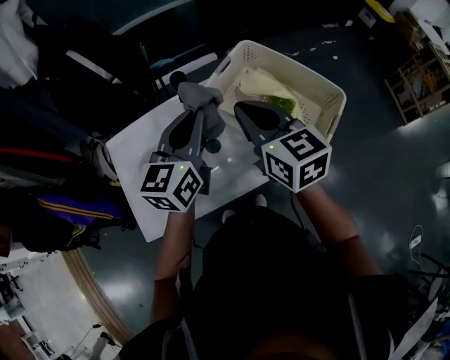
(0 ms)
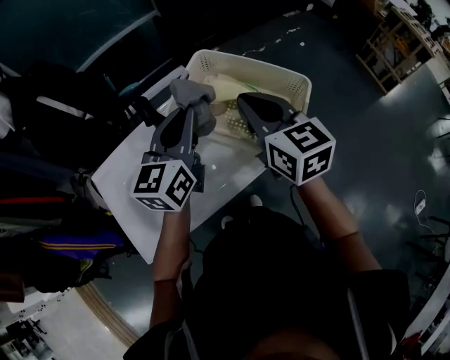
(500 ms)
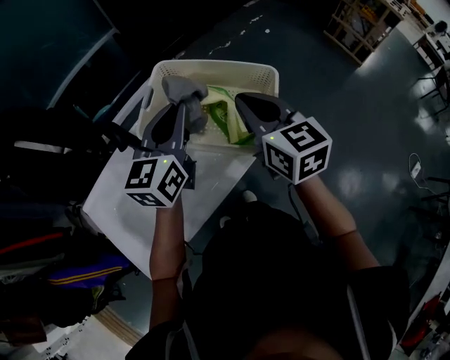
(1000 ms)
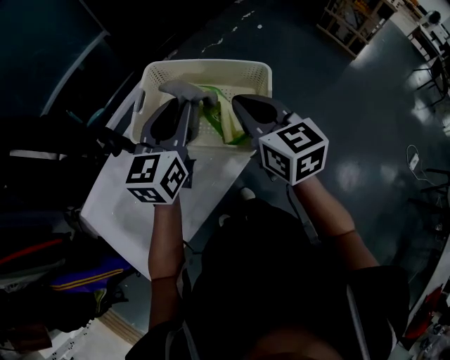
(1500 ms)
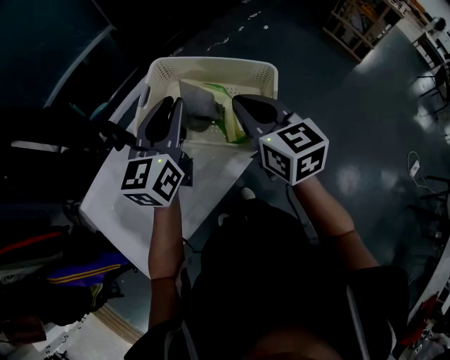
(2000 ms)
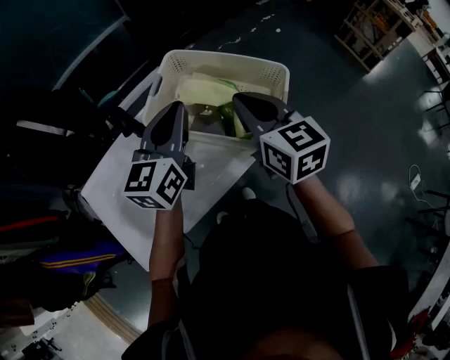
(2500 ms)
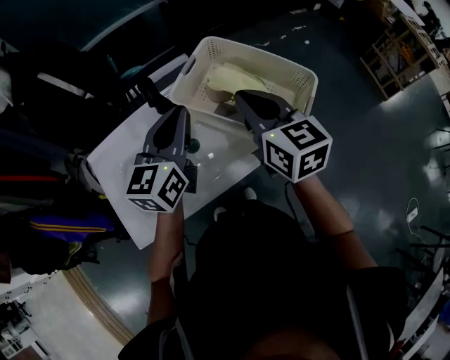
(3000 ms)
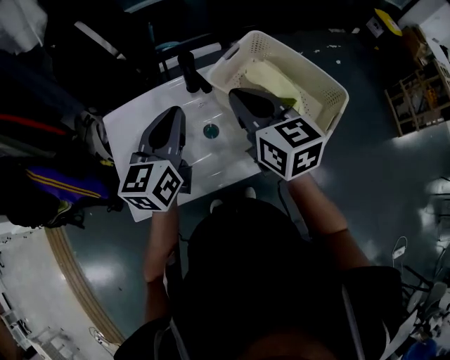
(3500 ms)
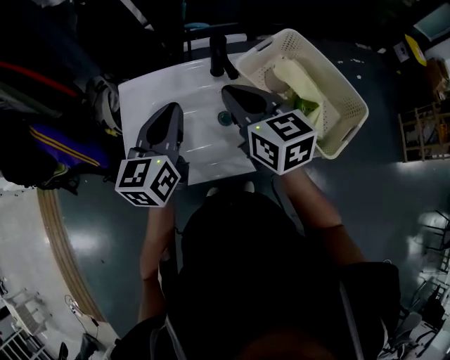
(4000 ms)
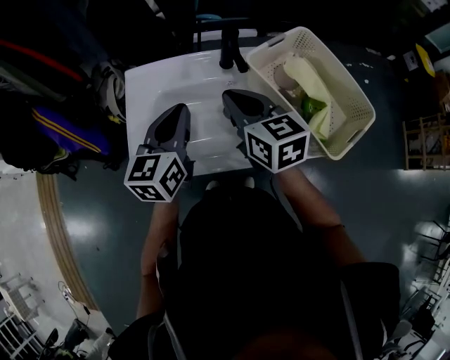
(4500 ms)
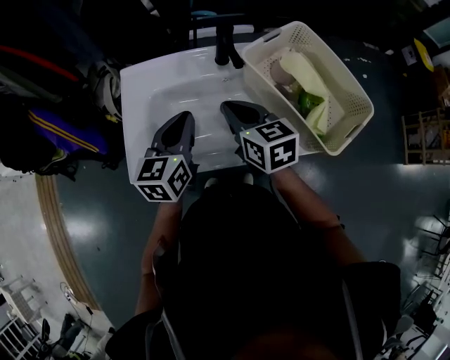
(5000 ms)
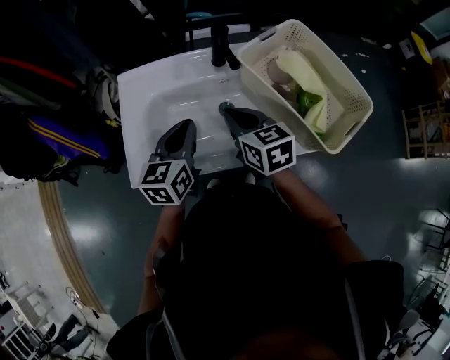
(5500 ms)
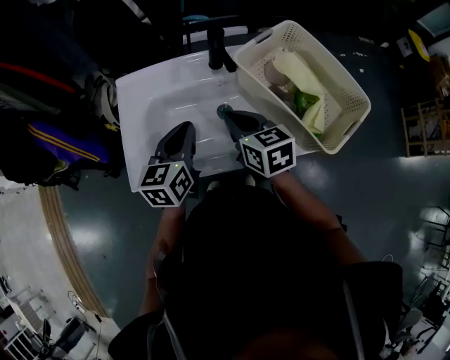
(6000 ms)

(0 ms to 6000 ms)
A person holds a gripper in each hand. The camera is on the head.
0 ms - 2000 ms: The right gripper is displaced to the right by approximately 15 cm, and swivels approximately 20 degrees; the left gripper moves to the right and forward, roughly 15 cm.
2000 ms - 4000 ms: The left gripper changes place by some 30 cm, and swivels about 40 degrees; the right gripper moves some 25 cm, and rotates about 40 degrees.
4000 ms - 6000 ms: The two grippers go approximately 10 cm downward.

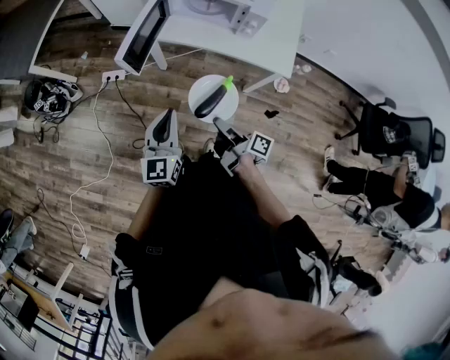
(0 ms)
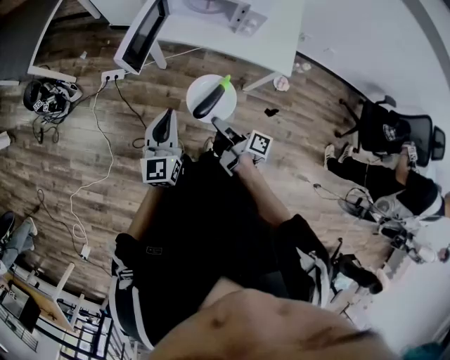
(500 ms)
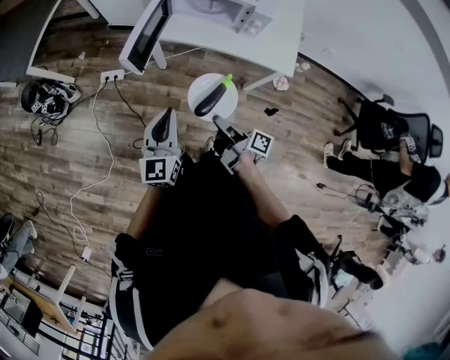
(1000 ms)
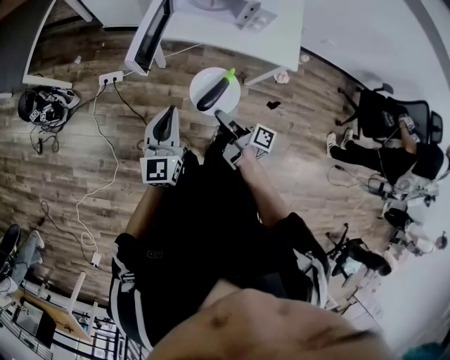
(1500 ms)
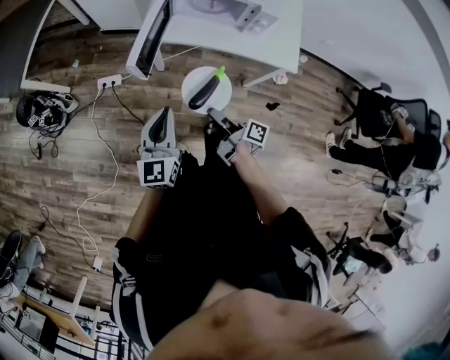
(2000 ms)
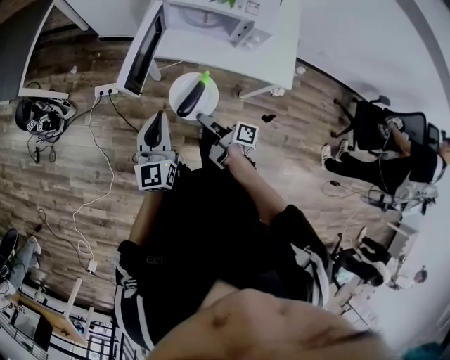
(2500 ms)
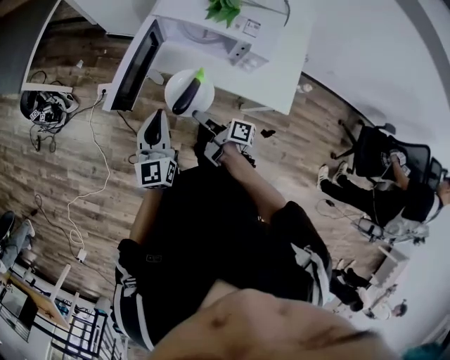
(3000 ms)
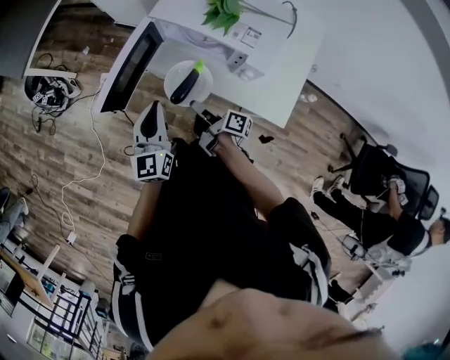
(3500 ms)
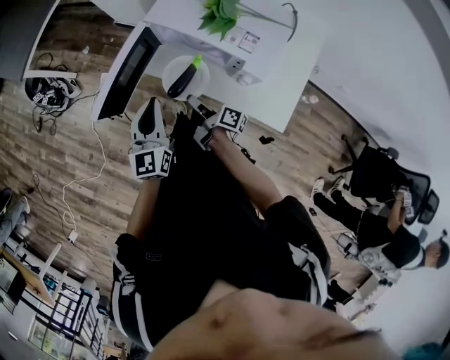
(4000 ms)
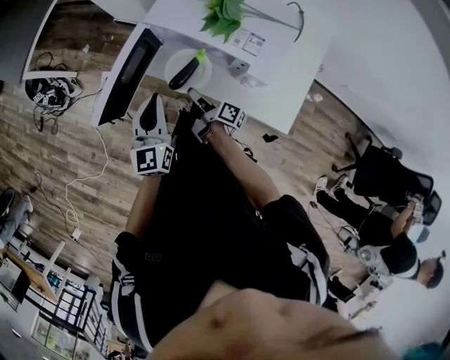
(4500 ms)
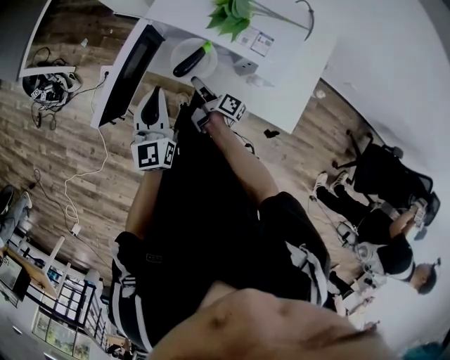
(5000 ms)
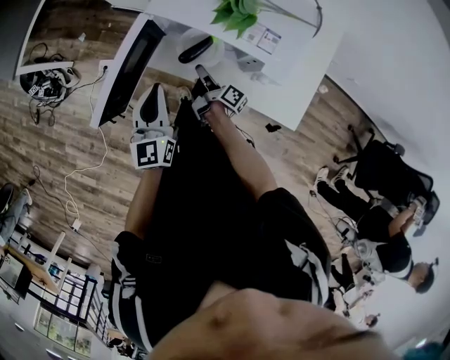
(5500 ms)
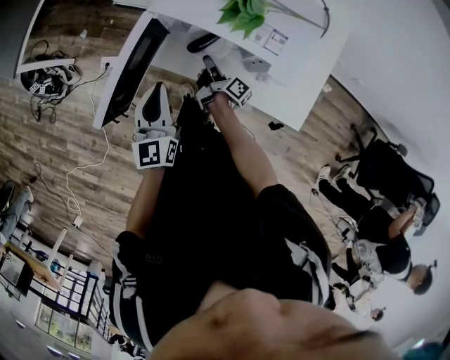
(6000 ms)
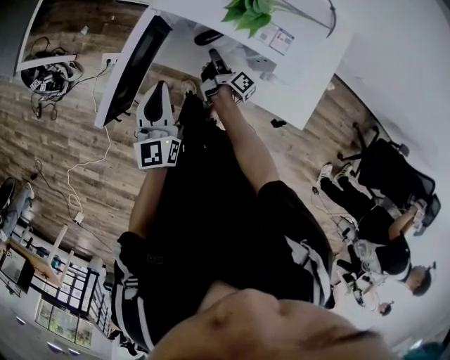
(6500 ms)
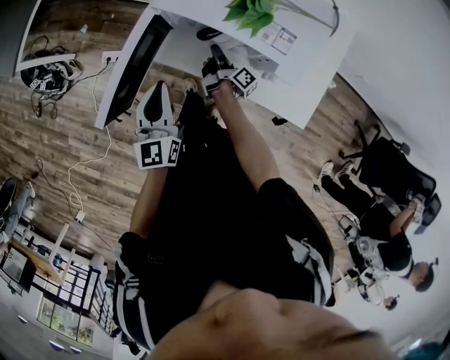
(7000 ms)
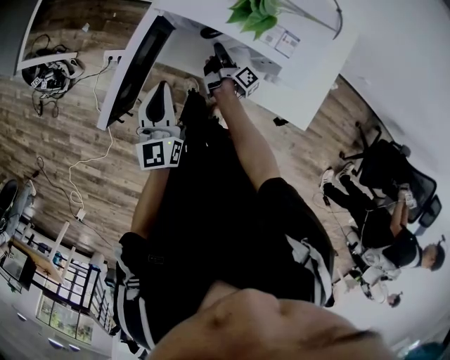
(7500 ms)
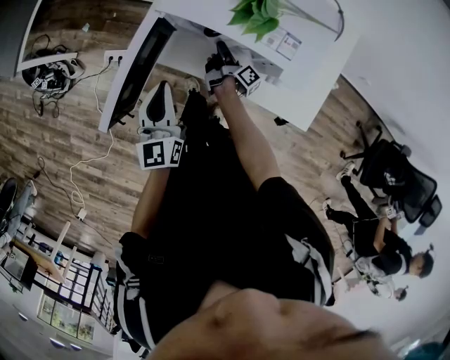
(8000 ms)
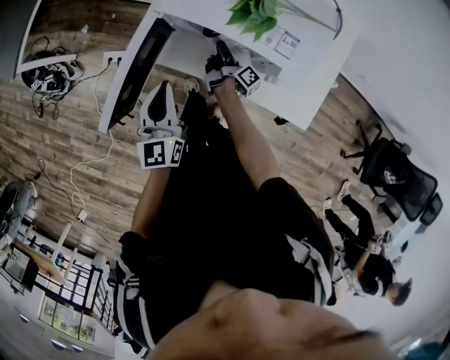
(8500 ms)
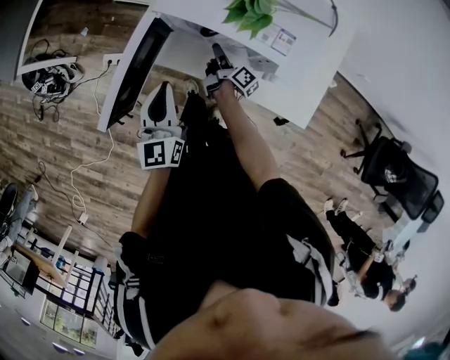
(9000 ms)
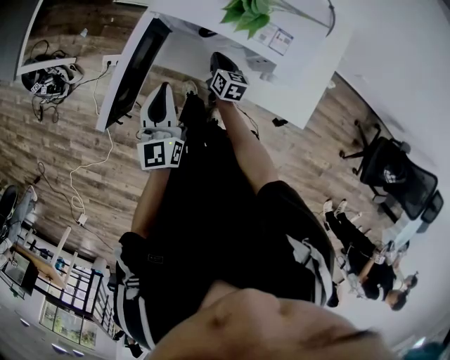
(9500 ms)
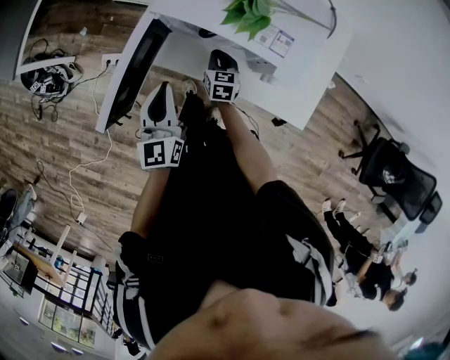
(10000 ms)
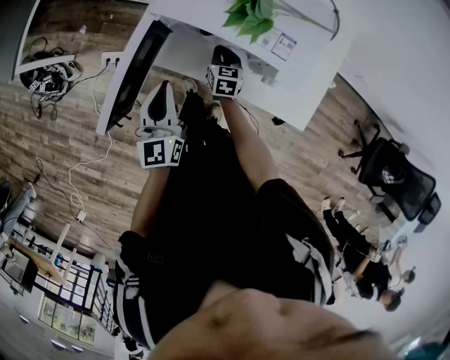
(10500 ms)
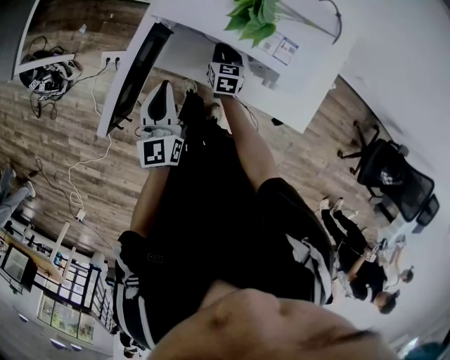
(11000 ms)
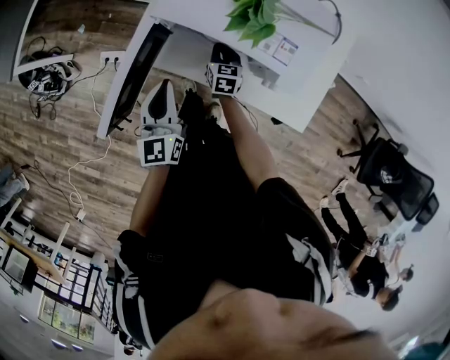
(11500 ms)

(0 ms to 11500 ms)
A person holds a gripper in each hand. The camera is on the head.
0 ms - 2000 ms: The left gripper shifts by about 10 cm.
2000 ms - 4000 ms: The left gripper moves about 25 cm, and rotates about 20 degrees.
4000 ms - 6000 ms: The left gripper changes place by approximately 10 cm.

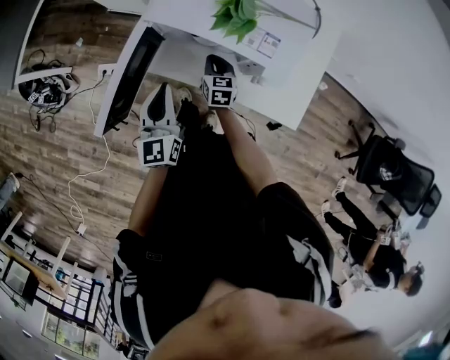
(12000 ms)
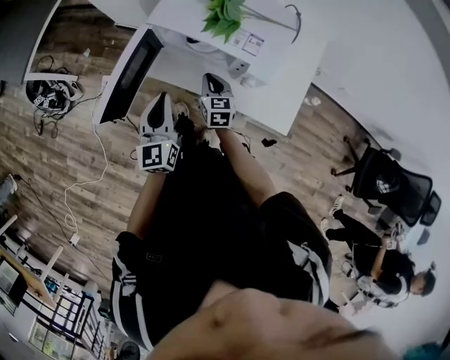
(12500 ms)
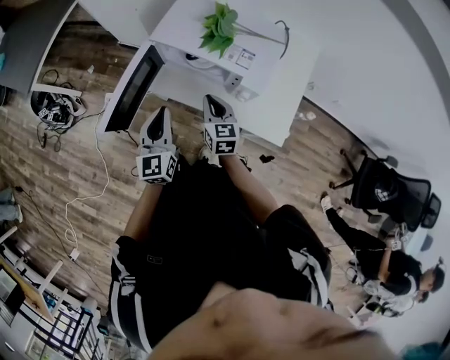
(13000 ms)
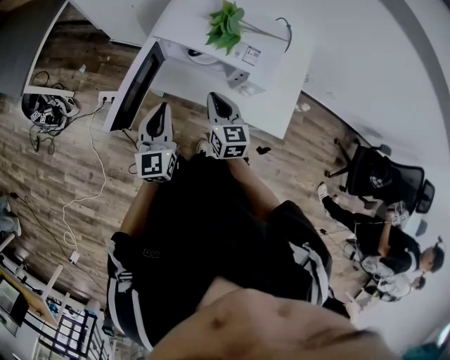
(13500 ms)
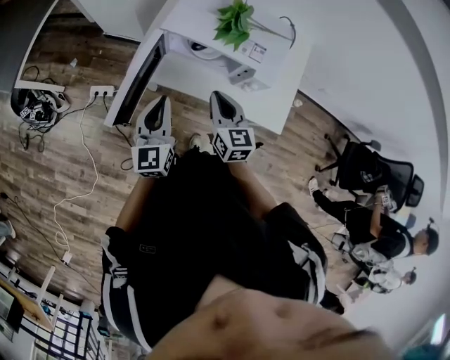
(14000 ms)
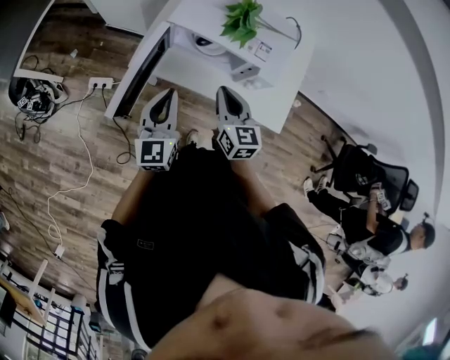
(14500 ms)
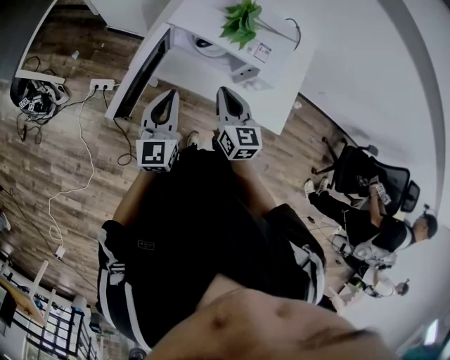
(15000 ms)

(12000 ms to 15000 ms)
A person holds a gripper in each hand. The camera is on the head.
12000 ms - 13500 ms: The left gripper shifts some 5 cm upward.

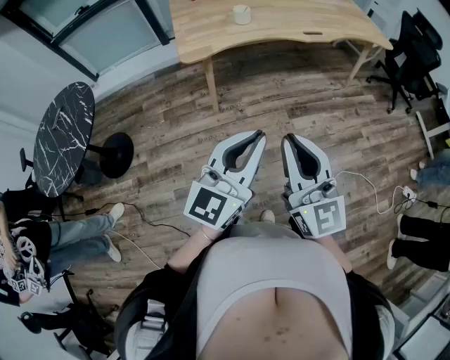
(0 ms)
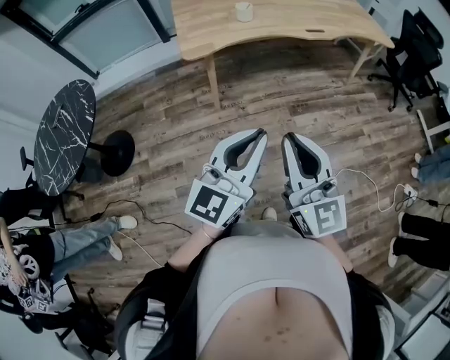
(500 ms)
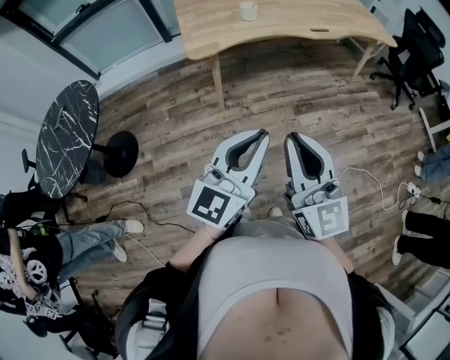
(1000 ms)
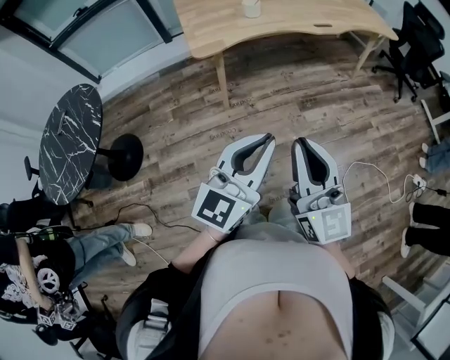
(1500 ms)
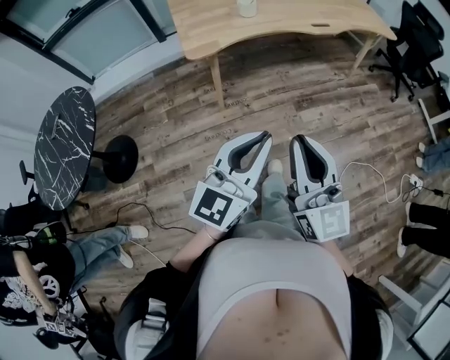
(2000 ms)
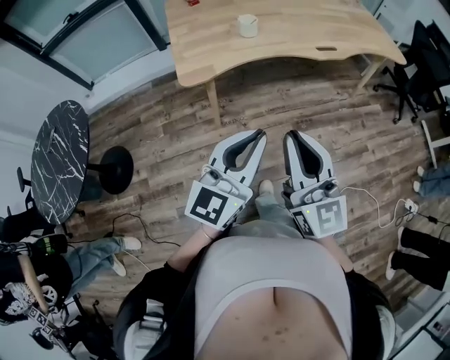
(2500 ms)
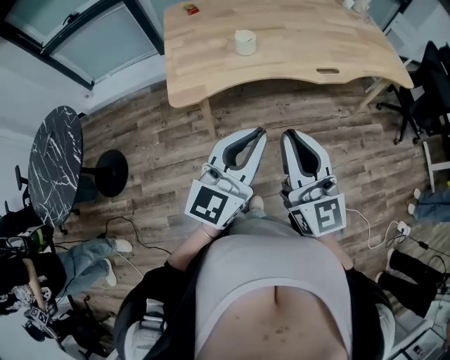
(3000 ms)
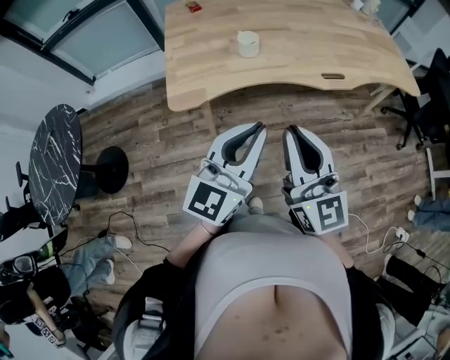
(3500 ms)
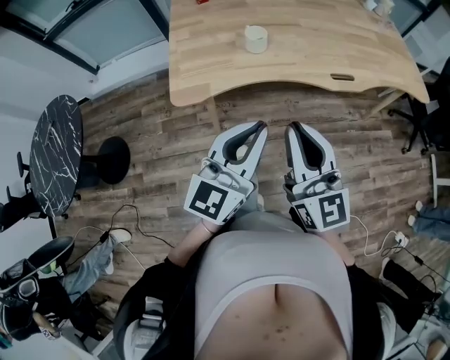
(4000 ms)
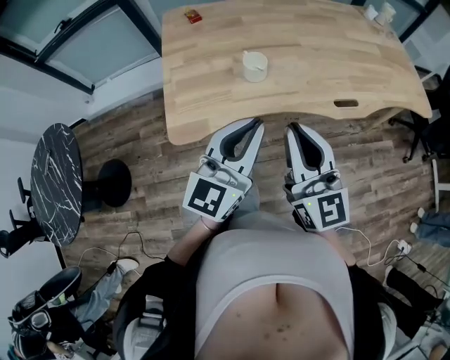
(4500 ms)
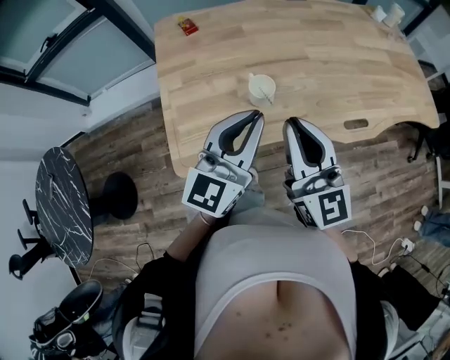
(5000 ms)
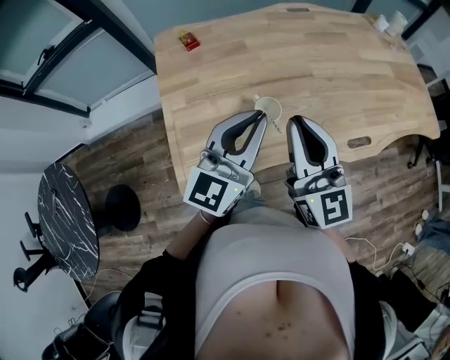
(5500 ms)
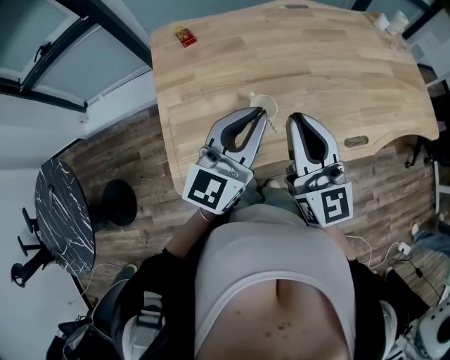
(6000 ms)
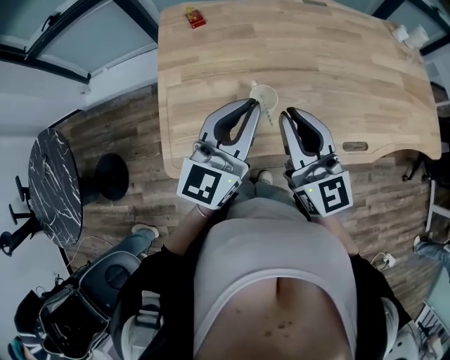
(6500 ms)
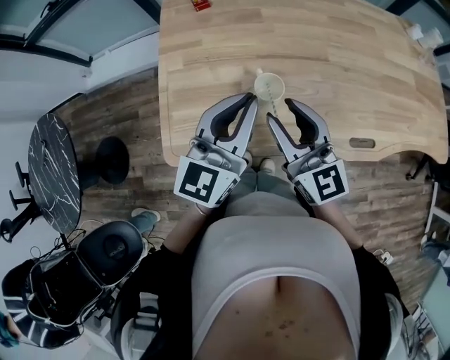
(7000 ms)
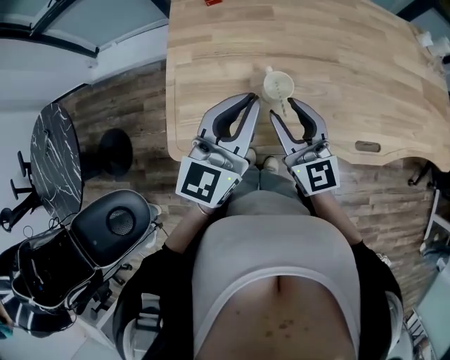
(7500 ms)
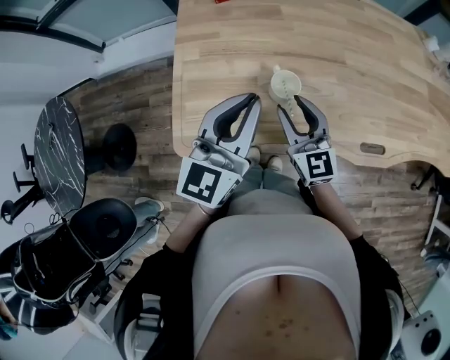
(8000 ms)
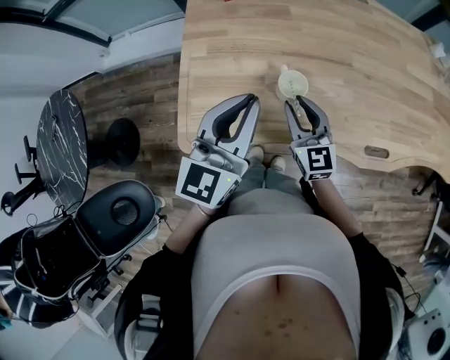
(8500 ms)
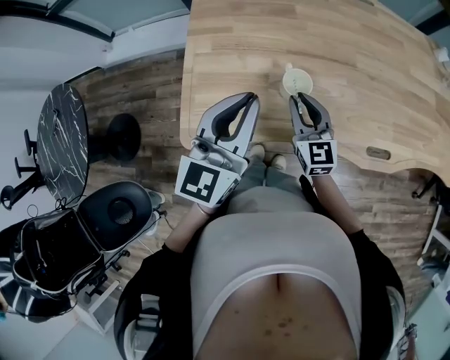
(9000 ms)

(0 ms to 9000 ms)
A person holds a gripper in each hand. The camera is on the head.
0 ms - 2000 ms: Both grippers move to the left, some 5 cm.
2000 ms - 4500 ms: Both grippers are carried forward, about 50 cm.
4500 ms - 7000 ms: The grippers both shift forward by about 20 cm. The right gripper opens.
7000 ms - 9000 ms: The right gripper moves downward, about 15 cm, while the left gripper travels to the left by roughly 5 cm.
